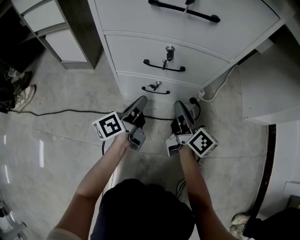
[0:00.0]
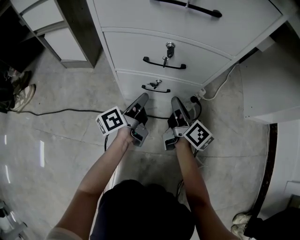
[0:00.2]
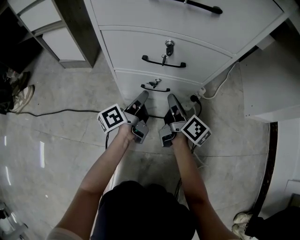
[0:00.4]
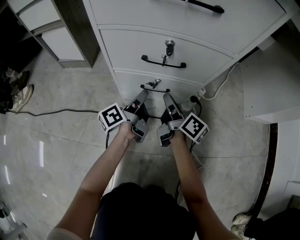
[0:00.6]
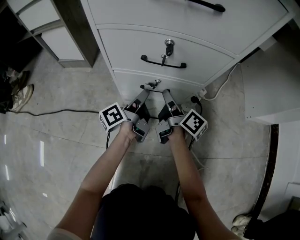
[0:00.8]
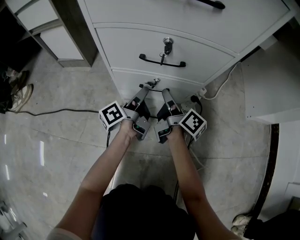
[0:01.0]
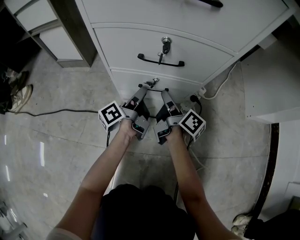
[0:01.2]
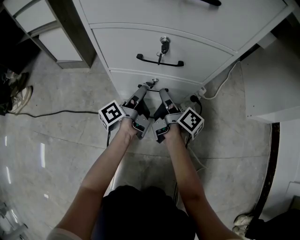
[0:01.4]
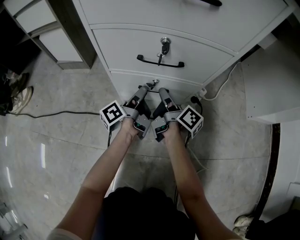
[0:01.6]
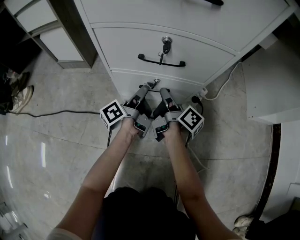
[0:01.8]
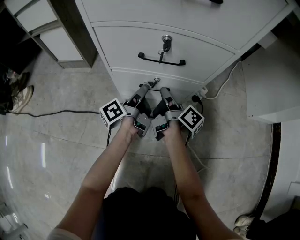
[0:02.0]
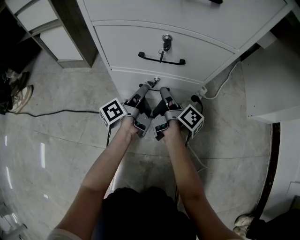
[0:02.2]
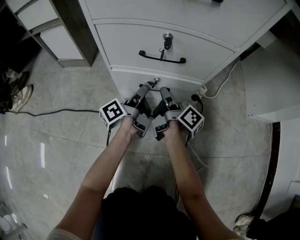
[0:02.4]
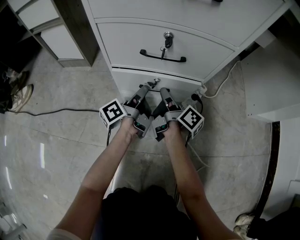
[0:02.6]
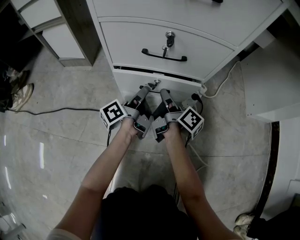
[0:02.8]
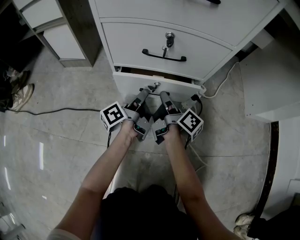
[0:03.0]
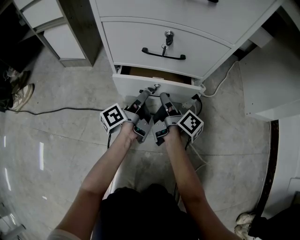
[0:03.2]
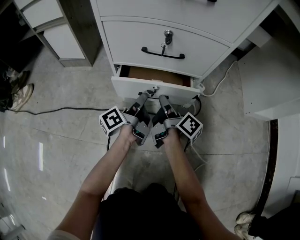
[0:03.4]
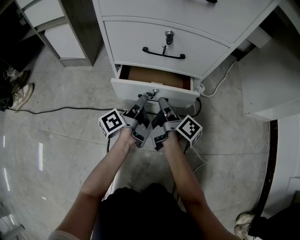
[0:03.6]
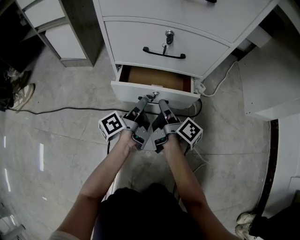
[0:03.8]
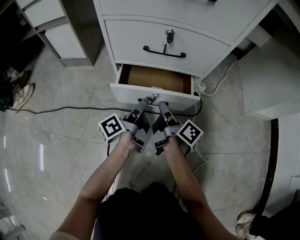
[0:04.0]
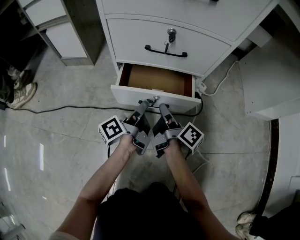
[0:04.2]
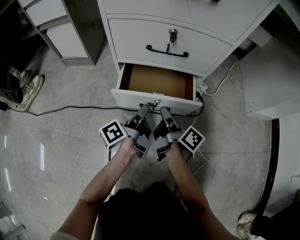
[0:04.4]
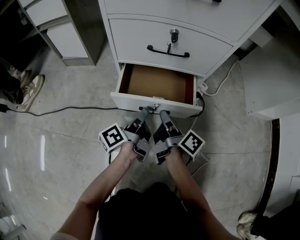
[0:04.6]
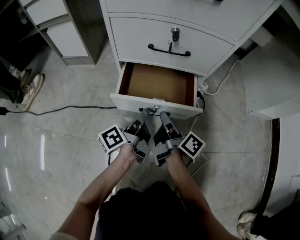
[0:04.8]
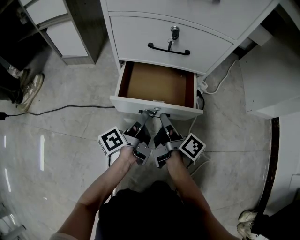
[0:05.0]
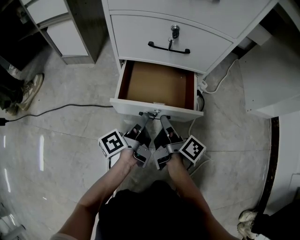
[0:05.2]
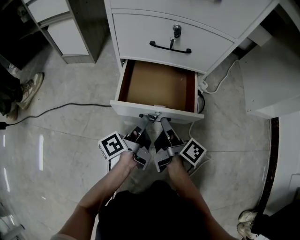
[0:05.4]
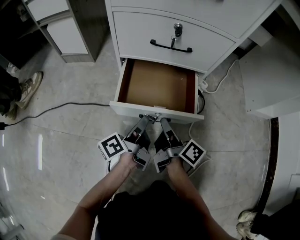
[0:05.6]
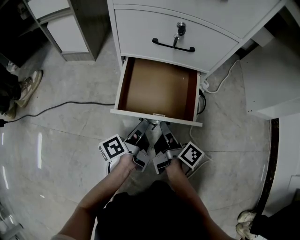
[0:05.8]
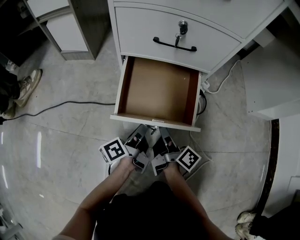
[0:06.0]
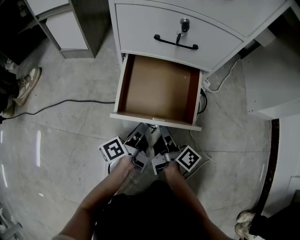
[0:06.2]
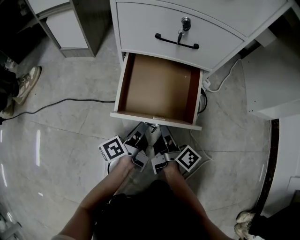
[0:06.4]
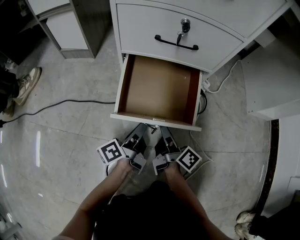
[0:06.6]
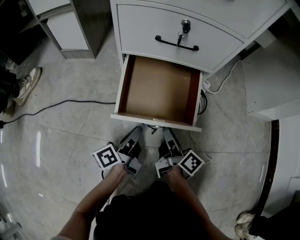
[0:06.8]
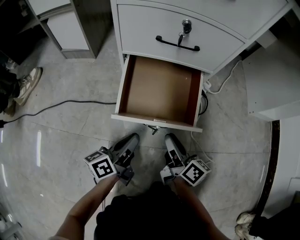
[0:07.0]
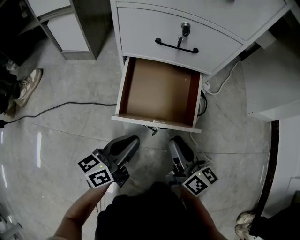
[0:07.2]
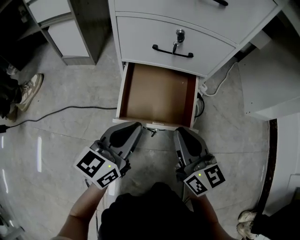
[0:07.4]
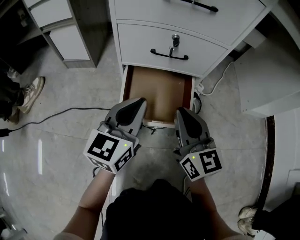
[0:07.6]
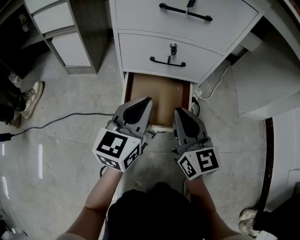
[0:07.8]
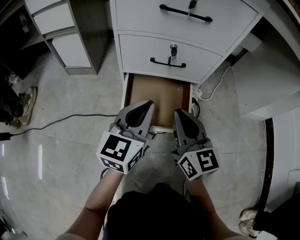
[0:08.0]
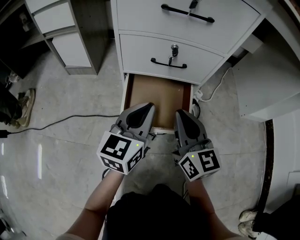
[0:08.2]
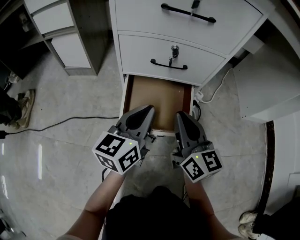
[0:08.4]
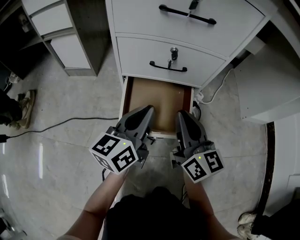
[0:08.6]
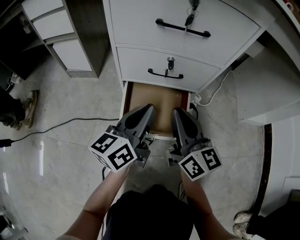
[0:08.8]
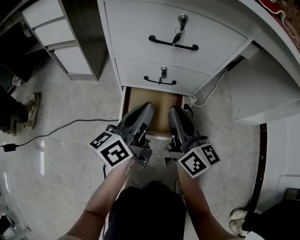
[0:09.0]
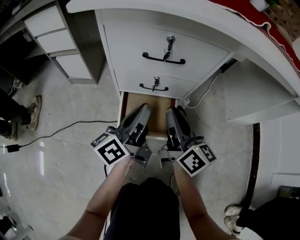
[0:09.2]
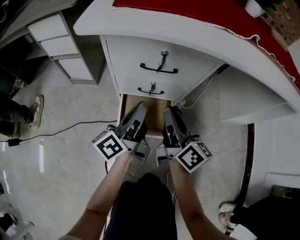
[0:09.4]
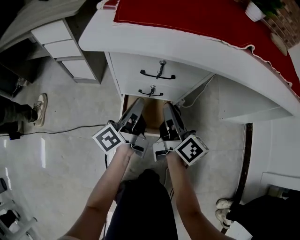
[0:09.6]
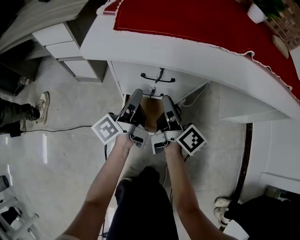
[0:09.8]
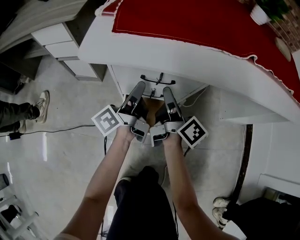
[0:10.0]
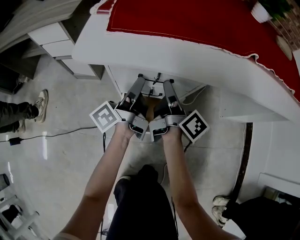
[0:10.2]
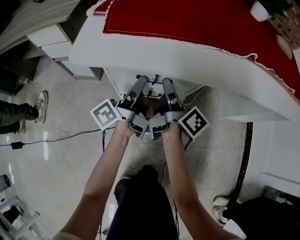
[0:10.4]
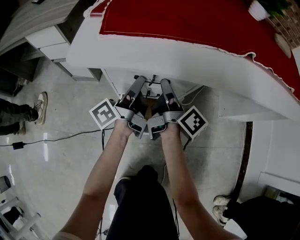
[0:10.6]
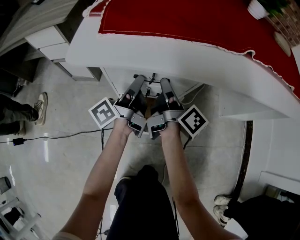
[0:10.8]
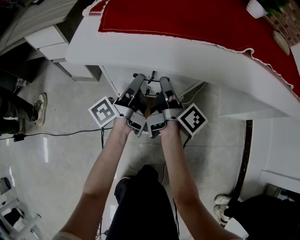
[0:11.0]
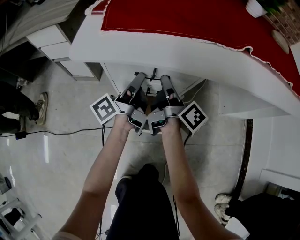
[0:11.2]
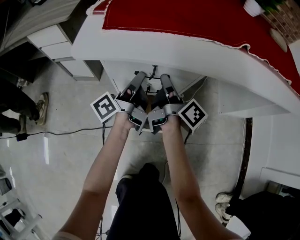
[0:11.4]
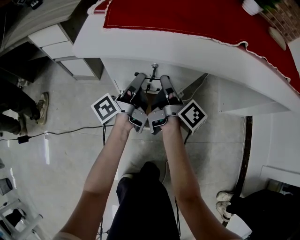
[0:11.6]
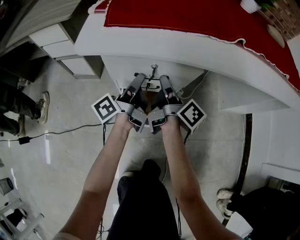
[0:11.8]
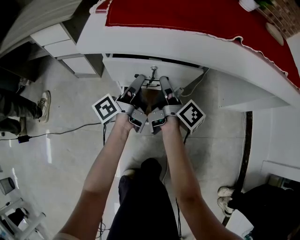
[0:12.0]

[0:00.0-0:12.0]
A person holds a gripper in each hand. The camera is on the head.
0:00.0 to 0:01.6: Both grippers travel together downward and forward, about 10 cm. The right gripper changes its angle by some 30 degrees. The left gripper changes its angle by roughly 20 degrees, and opens up.
0:01.6 to 0:03.0: The grippers stay close to where they were, moving slightly.
0:03.0 to 0:04.4: Both grippers move backward, roughly 10 cm.
0:04.4 to 0:06.0: The two grippers go roughly 5 cm backward.
0:06.0 to 0:07.6: Both grippers travel together upward, about 20 cm. The right gripper rotates around the line of its fingers by about 70 degrees, counterclockwise from behind. The left gripper rotates around the line of its fingers by some 70 degrees, clockwise from behind.
0:07.6 to 0:09.0: The two grippers go some 10 cm upward. The left gripper swivels some 40 degrees; the right gripper turns by roughly 30 degrees.
0:09.0 to 0:10.4: The left gripper moves upward and forward, approximately 15 cm, and swivels roughly 30 degrees. Meanwhile the right gripper shifts roughly 15 cm forward and upward, and twists about 40 degrees clockwise, seen from behind.
0:10.4 to 0:12.0: The grippers stay close to where they were, moving slightly.

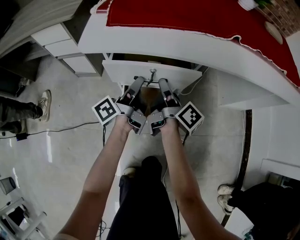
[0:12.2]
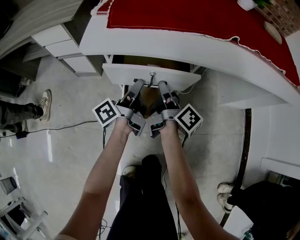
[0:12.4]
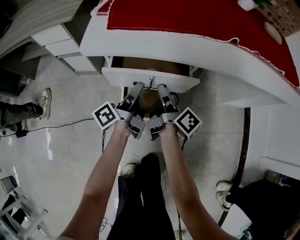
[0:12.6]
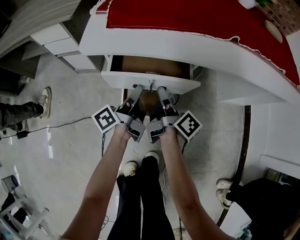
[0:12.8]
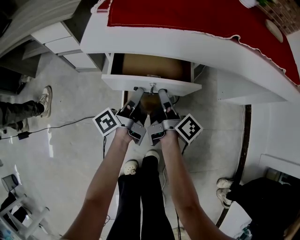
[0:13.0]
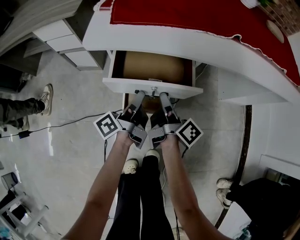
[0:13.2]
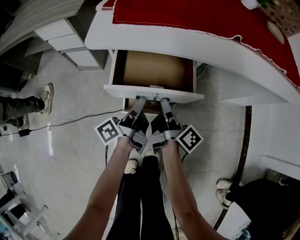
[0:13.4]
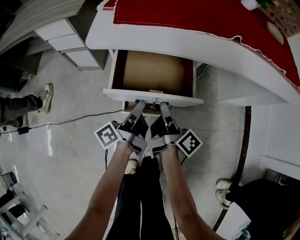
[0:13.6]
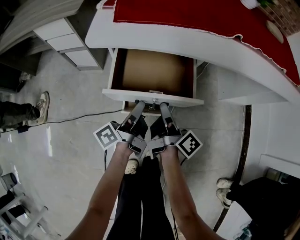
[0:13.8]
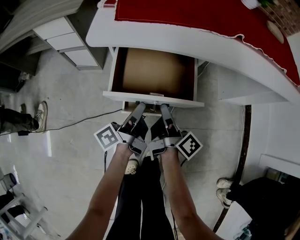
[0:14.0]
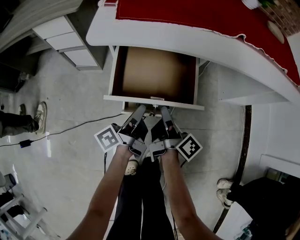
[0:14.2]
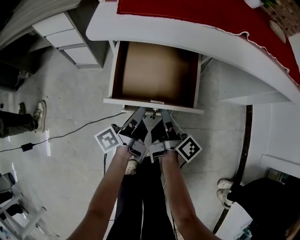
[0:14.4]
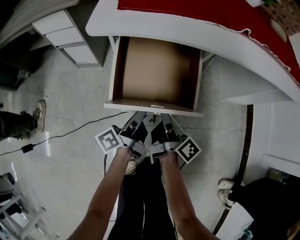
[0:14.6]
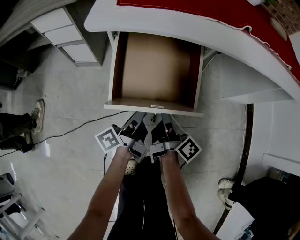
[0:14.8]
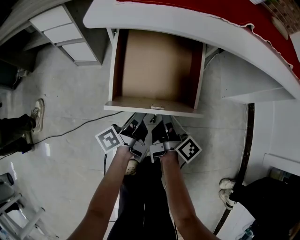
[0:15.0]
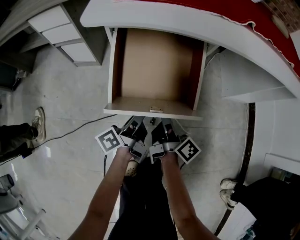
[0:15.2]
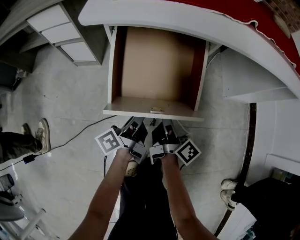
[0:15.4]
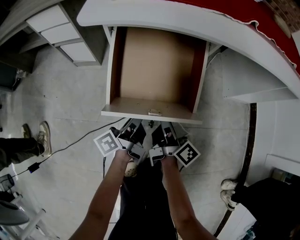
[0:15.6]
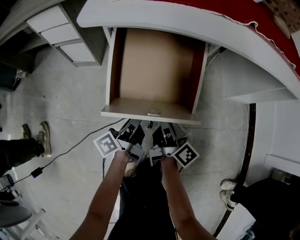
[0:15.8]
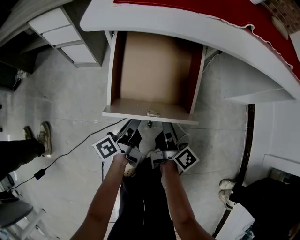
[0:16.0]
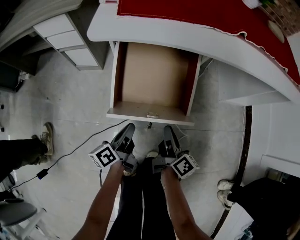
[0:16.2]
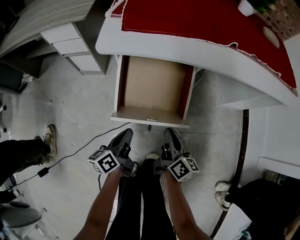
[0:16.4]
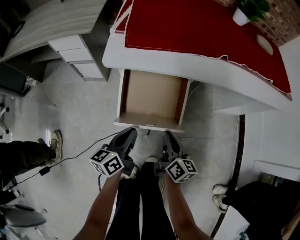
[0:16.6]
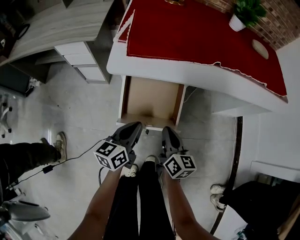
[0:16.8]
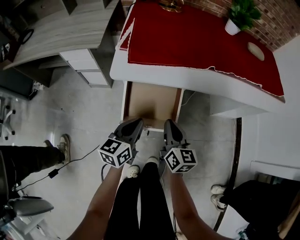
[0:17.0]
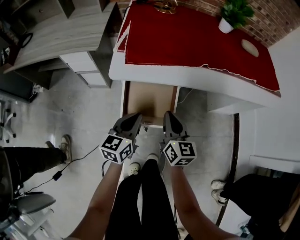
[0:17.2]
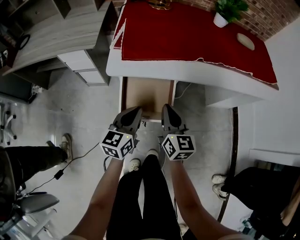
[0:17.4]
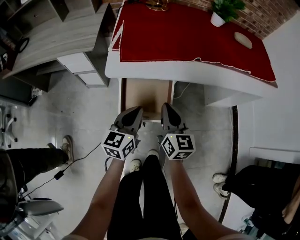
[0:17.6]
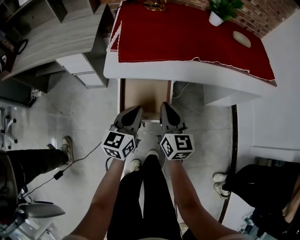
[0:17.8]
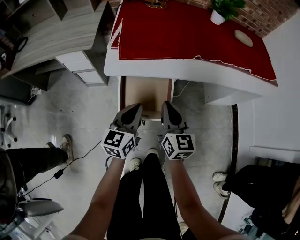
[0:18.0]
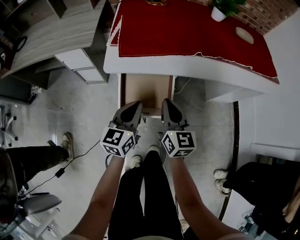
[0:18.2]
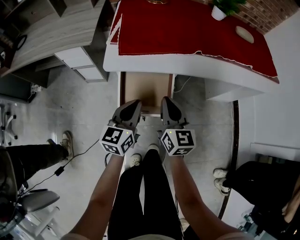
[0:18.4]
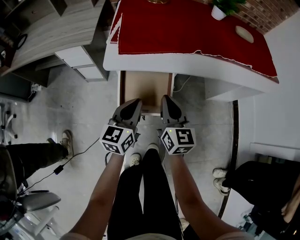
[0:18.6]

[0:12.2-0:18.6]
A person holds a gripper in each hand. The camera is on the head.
0:12.2 to 0:13.8: The grippers both shift backward by approximately 10 cm.
0:13.8 to 0:15.4: Both grippers move downward, some 5 cm.
0:15.4 to 0:17.0: The two grippers go roughly 20 cm upward. The left gripper rolls clockwise, seen from behind, by roughly 50 degrees; the right gripper twists roughly 50 degrees counterclockwise, seen from behind.
0:17.0 to 0:18.6: The grippers both shift upward by roughly 10 cm.

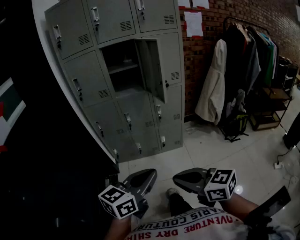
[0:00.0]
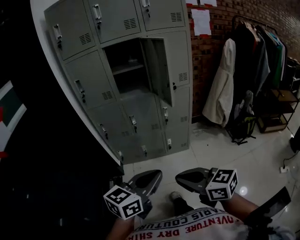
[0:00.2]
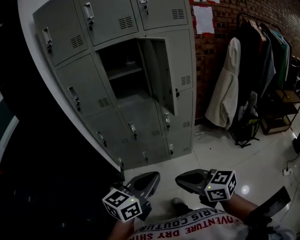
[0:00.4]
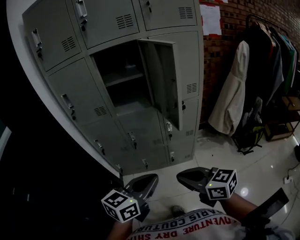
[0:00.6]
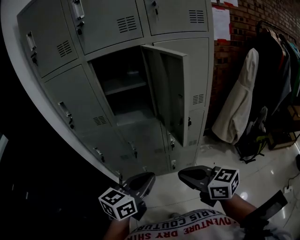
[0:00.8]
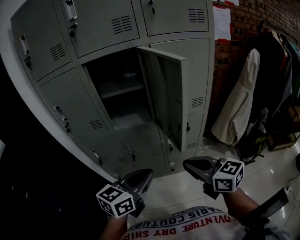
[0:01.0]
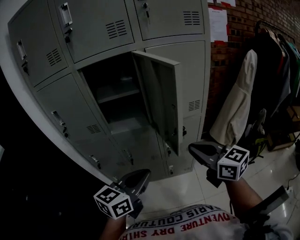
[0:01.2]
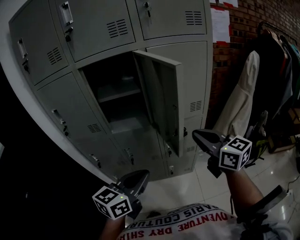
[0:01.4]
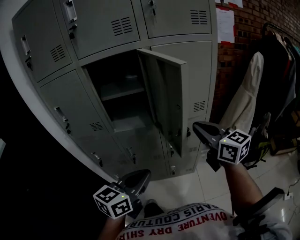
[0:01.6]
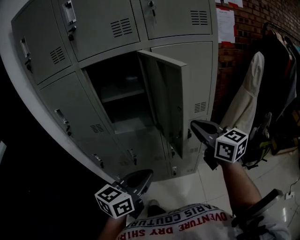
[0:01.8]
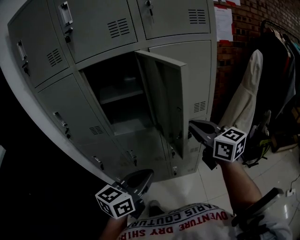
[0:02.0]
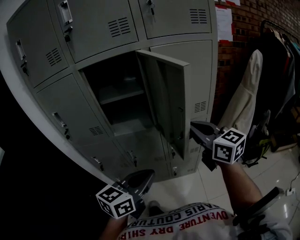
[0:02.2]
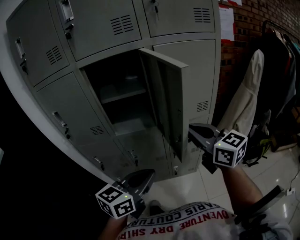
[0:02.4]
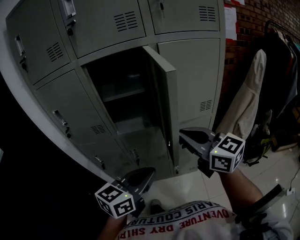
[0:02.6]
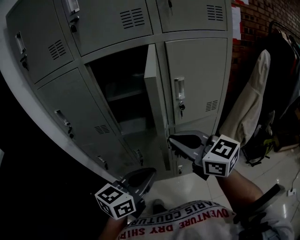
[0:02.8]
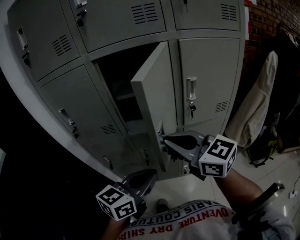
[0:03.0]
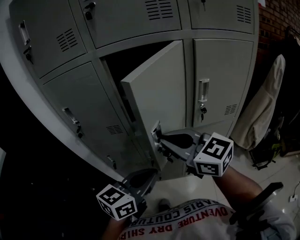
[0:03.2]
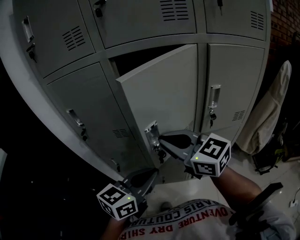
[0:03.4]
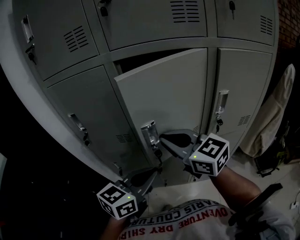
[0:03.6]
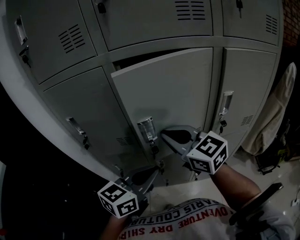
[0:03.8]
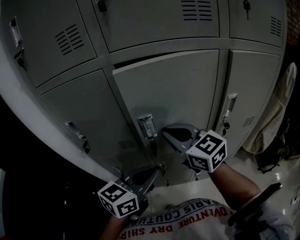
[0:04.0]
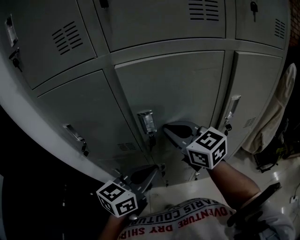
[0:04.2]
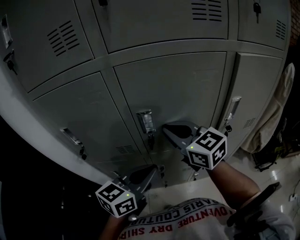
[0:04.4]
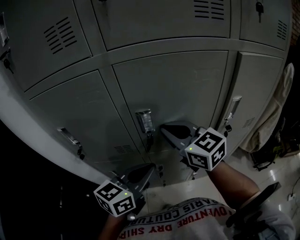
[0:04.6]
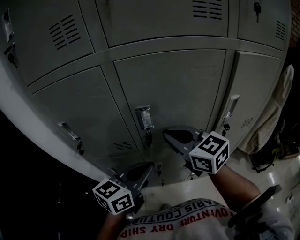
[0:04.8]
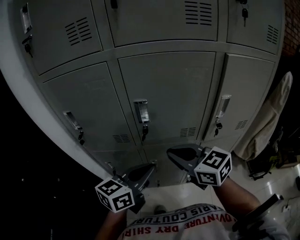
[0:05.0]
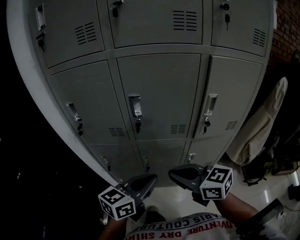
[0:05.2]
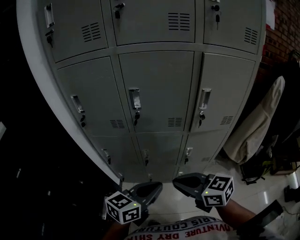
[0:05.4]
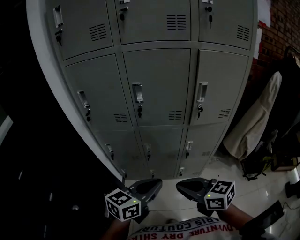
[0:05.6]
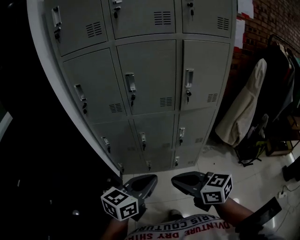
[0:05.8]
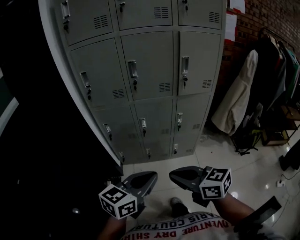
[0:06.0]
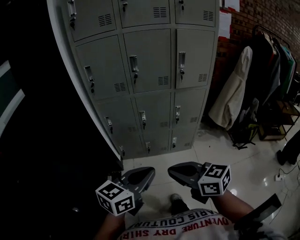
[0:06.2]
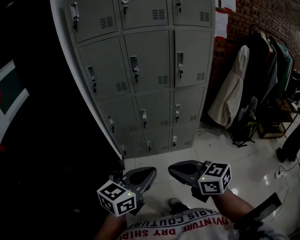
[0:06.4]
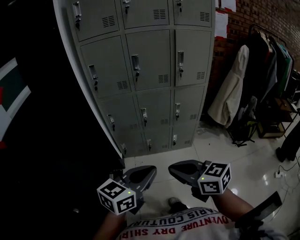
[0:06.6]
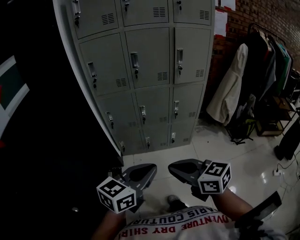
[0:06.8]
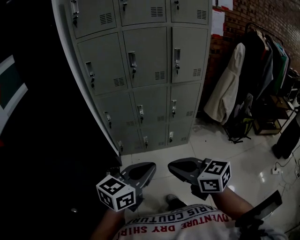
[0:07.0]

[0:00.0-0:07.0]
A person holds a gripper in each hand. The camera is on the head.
0:00.0 to 0:01.4: Both grippers move forward, approximately 40 cm. The right gripper turns by some 20 degrees.
0:01.4 to 0:02.8: The right gripper travels to the left by some 15 cm. Meanwhile the left gripper changes place by some 5 cm.
0:02.8 to 0:04.2: The two grippers go approximately 25 cm forward and to the left.
0:04.2 to 0:05.6: The left gripper goes about 20 cm backward; the right gripper heads backward, covering roughly 35 cm, and changes its angle by some 20 degrees.
0:05.6 to 0:07.0: Both grippers move backward, approximately 25 cm.
